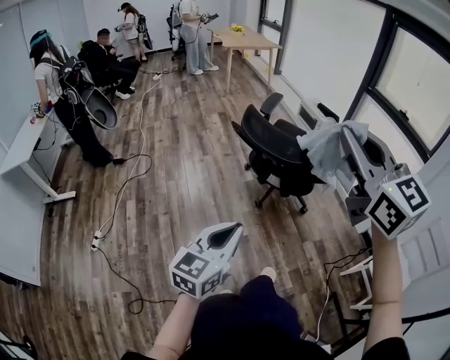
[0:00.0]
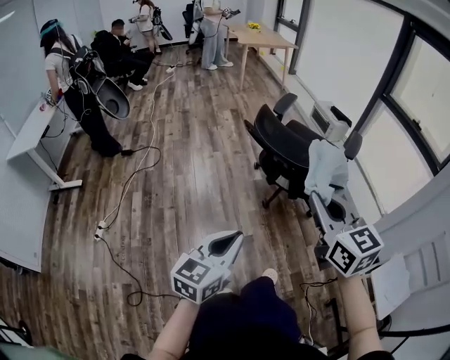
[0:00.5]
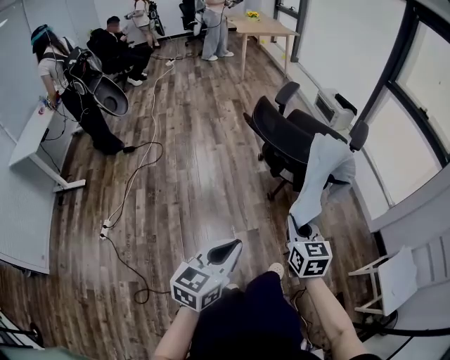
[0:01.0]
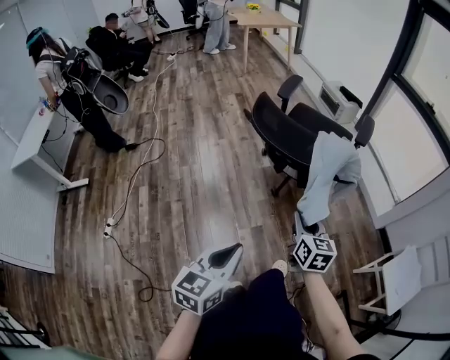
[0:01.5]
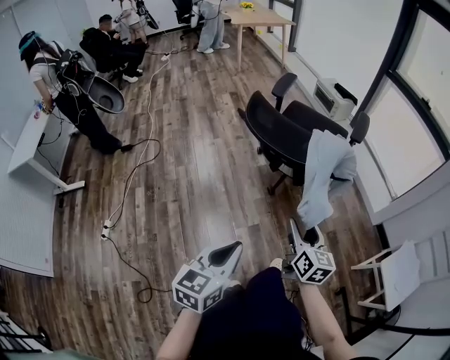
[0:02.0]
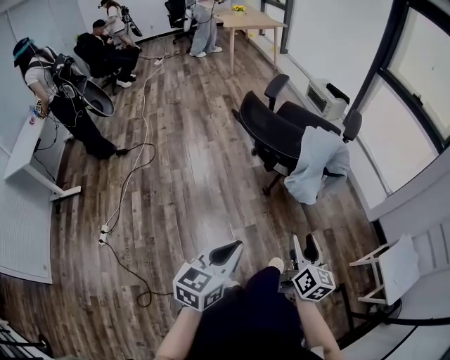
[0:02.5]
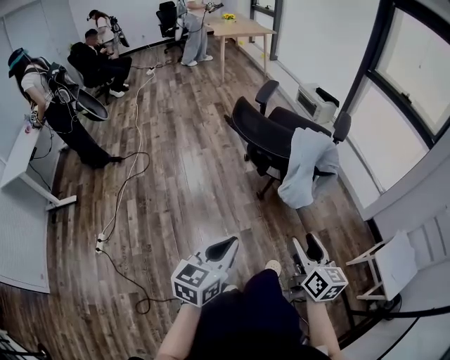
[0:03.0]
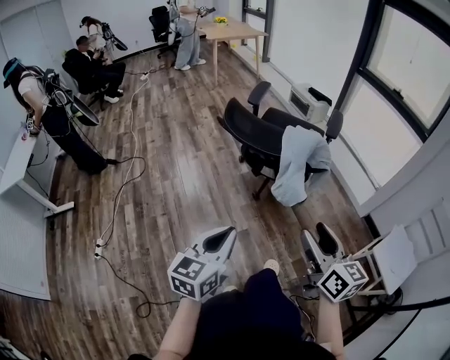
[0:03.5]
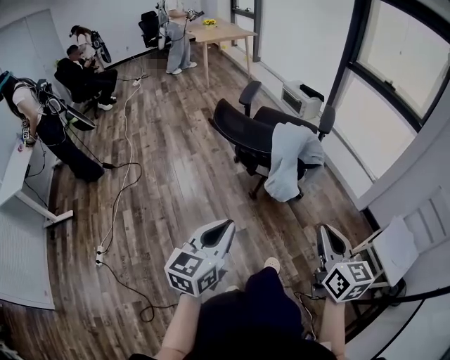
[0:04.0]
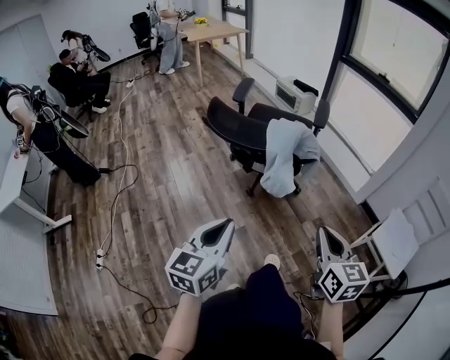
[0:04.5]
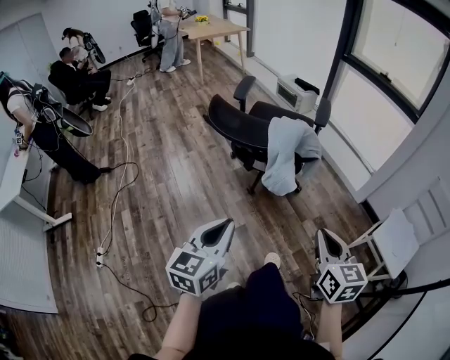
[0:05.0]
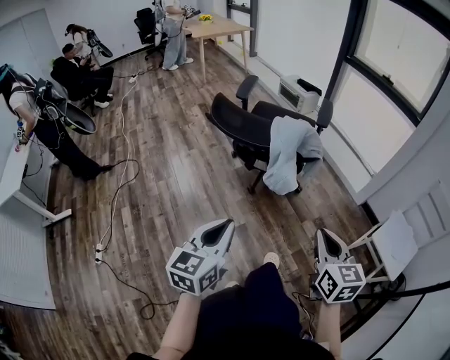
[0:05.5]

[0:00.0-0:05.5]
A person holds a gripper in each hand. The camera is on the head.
0:00.0 to 0:02.0: The left gripper goes about 10 cm downward. The right gripper shifts approximately 40 cm downward, rotates approximately 50 degrees, and opens its fingers.
0:02.0 to 0:03.5: The right gripper travels upward, backward and to the right by about 15 cm.
0:03.5 to 0:05.5: The right gripper travels to the right by approximately 5 cm, turns by approximately 20 degrees, and closes up.

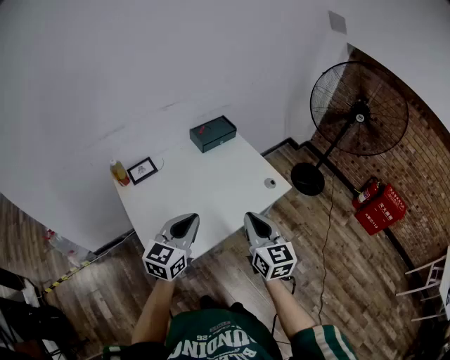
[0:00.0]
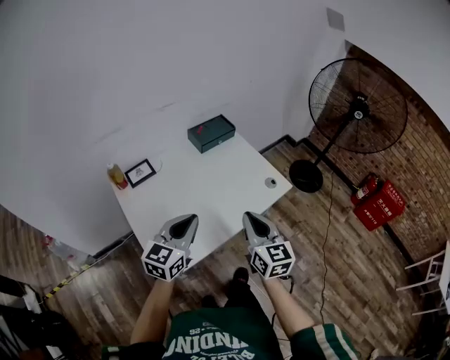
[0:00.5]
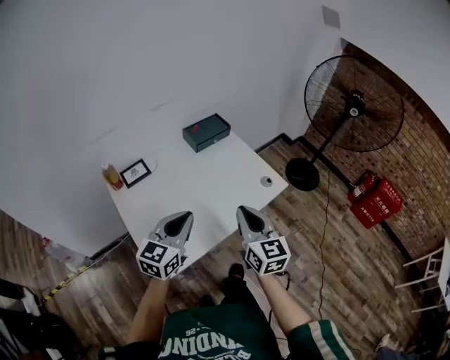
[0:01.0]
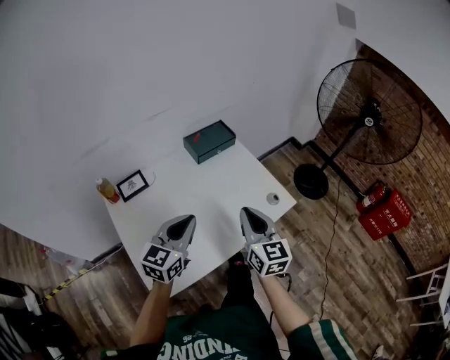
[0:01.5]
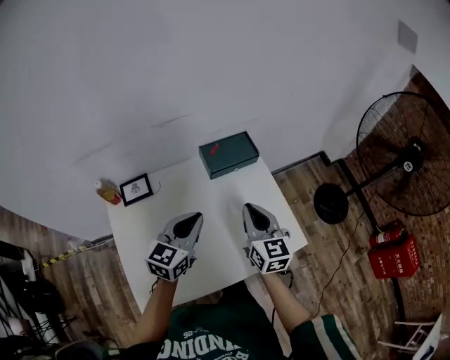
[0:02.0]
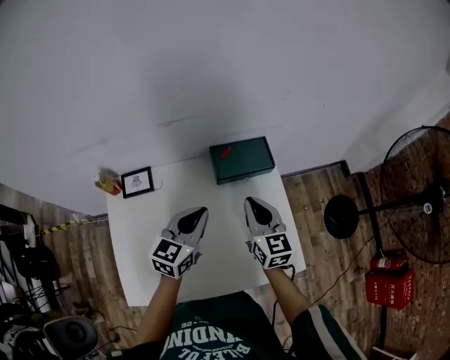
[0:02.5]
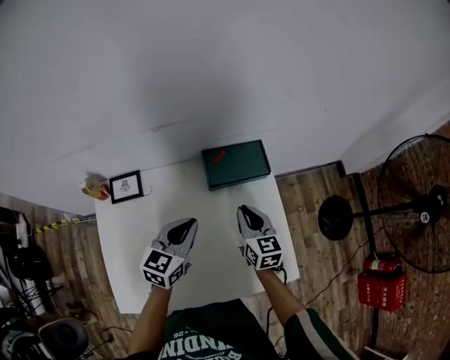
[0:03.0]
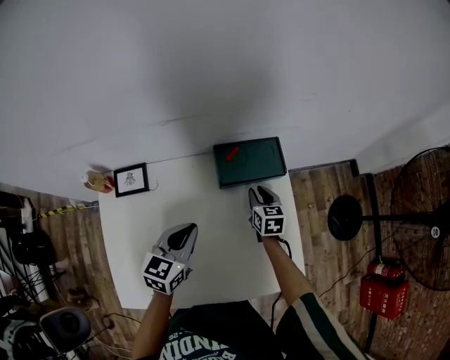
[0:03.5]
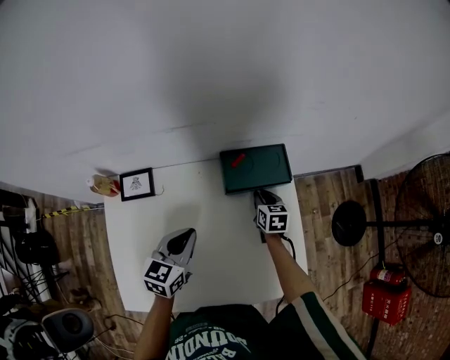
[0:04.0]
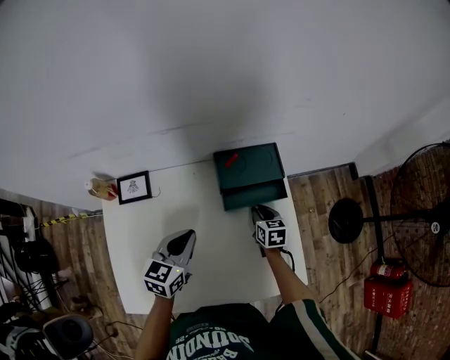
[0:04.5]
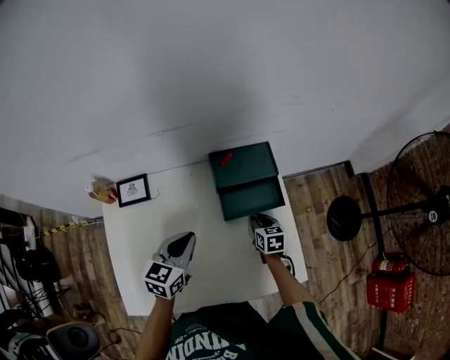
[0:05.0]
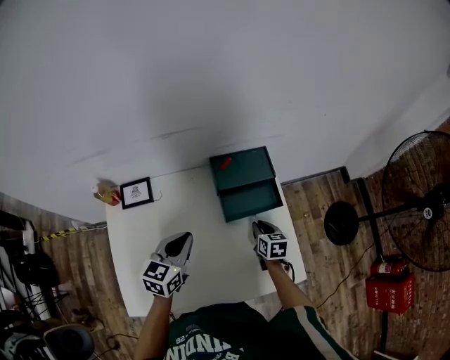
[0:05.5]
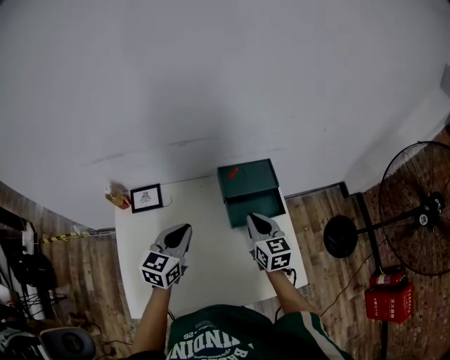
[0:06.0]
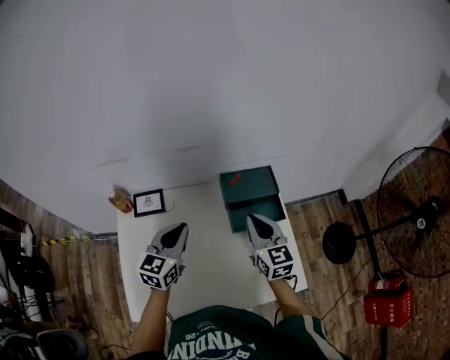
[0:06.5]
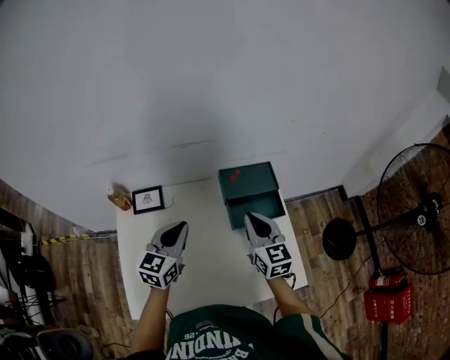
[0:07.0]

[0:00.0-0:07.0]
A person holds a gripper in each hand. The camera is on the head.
0:00.0 to 0:02.0: Both grippers travel together forward, some 30 cm.
0:02.0 to 0:03.5: The left gripper goes approximately 15 cm downward and forward, and swivels roughly 20 degrees; the right gripper goes about 35 cm downward and forward, and turns by about 30 degrees.
0:03.5 to 0:05.0: The right gripper moves backward, approximately 10 cm.
0:05.0 to 0:07.0: The left gripper goes approximately 10 cm upward and to the left, while the right gripper goes some 25 cm upward, and points its fingers some 30 degrees further upward.

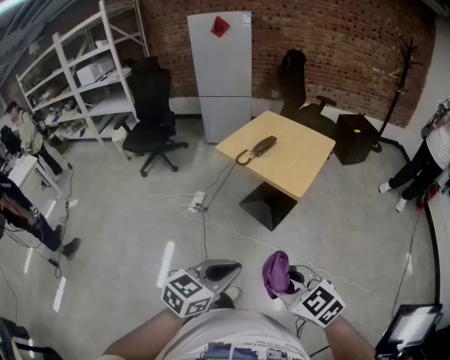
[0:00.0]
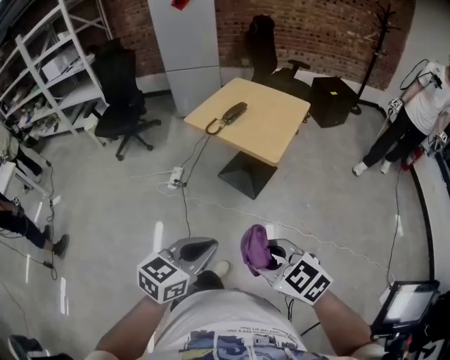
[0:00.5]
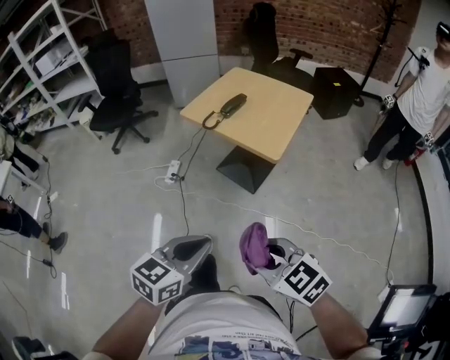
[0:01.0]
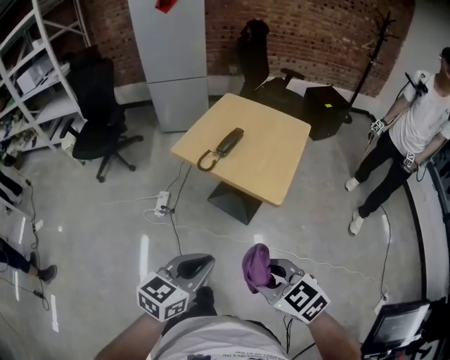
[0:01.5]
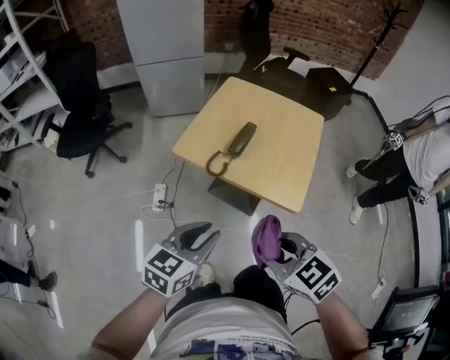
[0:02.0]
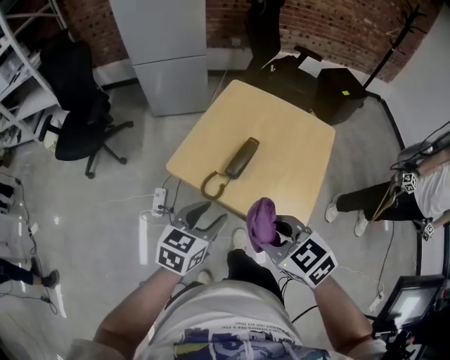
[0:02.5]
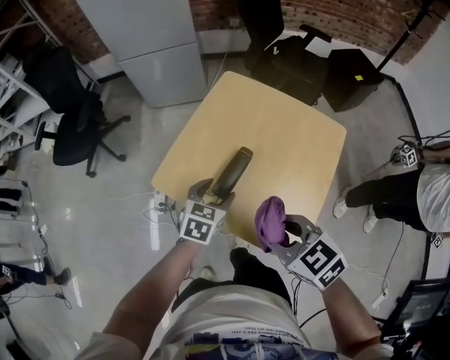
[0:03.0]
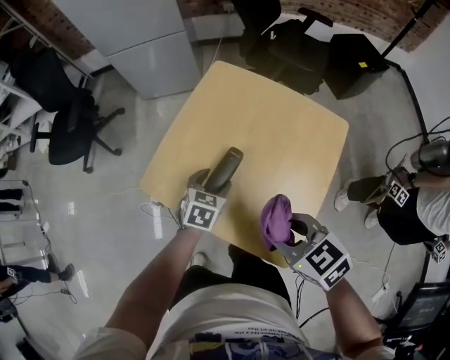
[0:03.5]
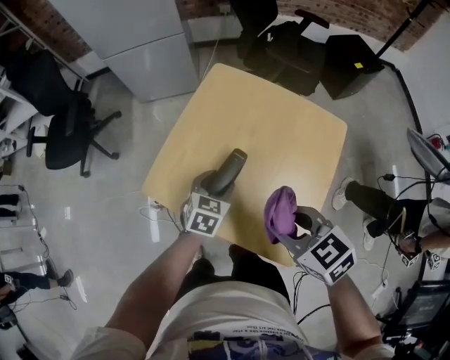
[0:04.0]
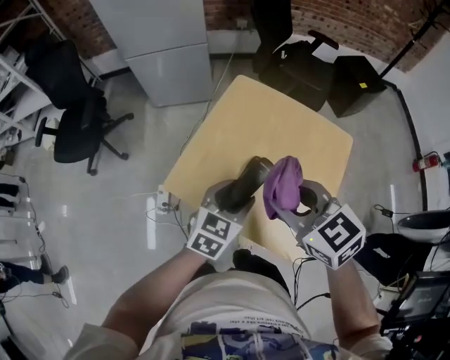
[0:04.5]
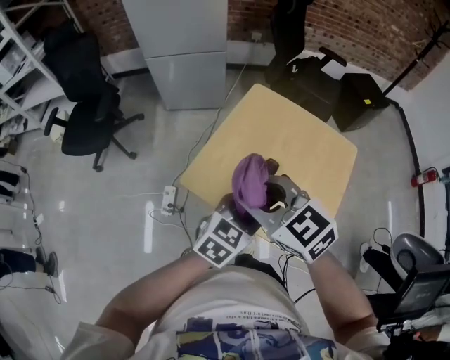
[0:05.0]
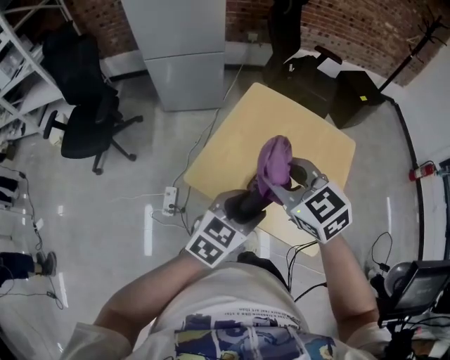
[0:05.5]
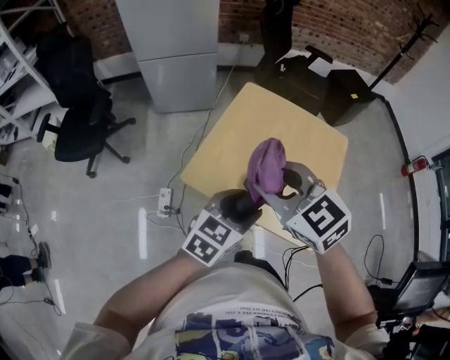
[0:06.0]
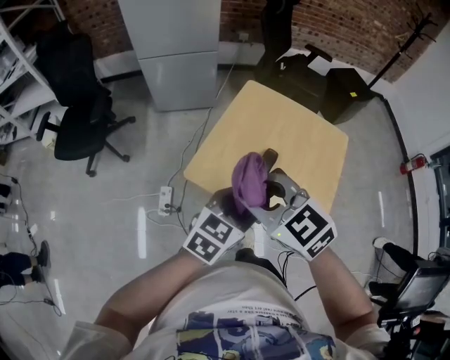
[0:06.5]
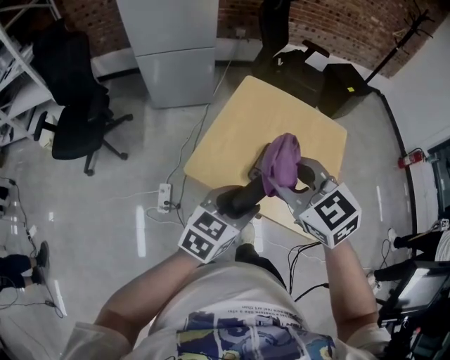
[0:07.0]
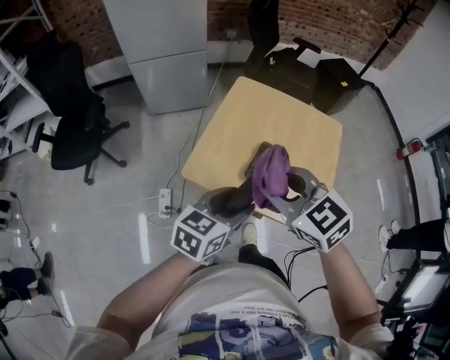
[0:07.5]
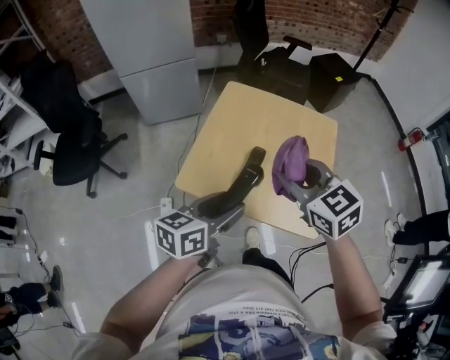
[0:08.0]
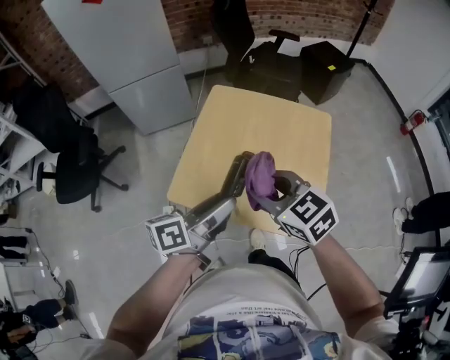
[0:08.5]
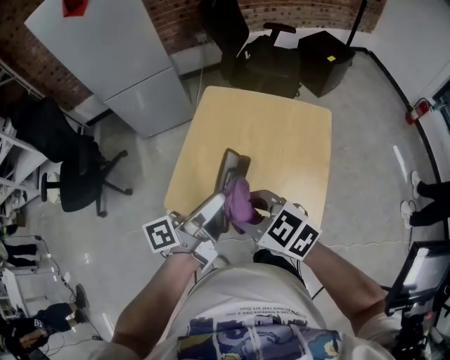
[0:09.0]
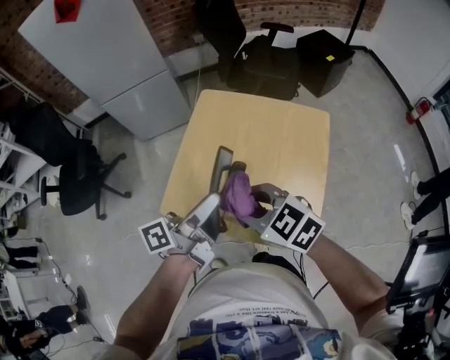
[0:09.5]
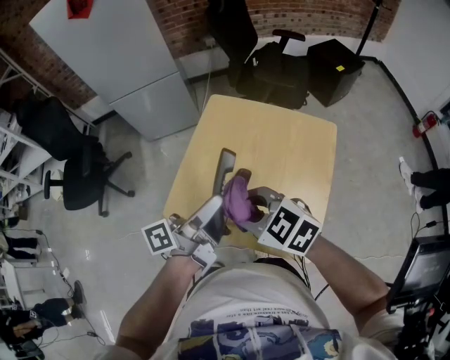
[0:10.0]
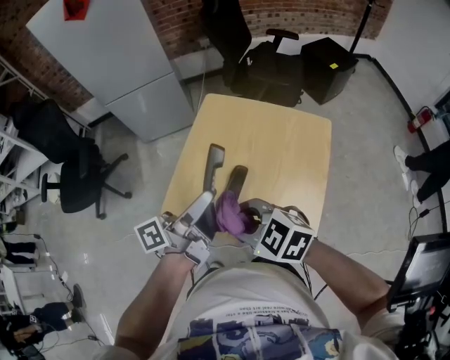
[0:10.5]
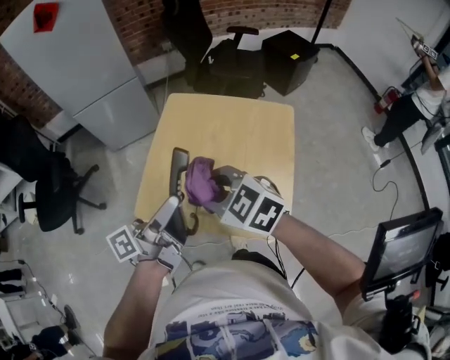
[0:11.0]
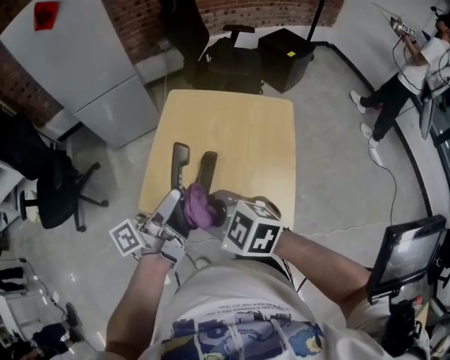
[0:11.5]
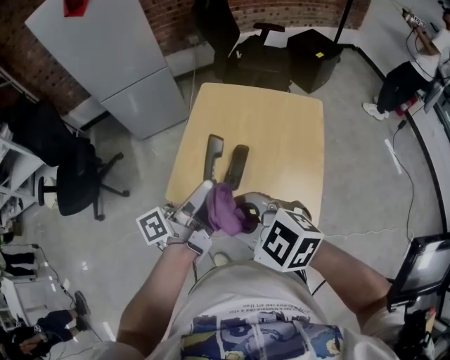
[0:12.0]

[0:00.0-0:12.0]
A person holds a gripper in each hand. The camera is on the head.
0:00.0 to 0:02.0: The two grippers go approximately 30 cm forward.
0:02.0 to 0:04.0: The right gripper shifts some 30 cm forward and to the right. Meanwhile the left gripper shifts some 35 cm forward, downward and to the right, swivels some 30 degrees, and opens.
0:04.0 to 0:06.0: The left gripper shifts some 20 cm upward and backward, and rotates roughly 20 degrees. The right gripper moves to the left and upward, about 20 cm, and turns by about 20 degrees.
0:06.0 to 0:08.0: The left gripper rotates about 30 degrees, while the right gripper is displaced to the right by approximately 10 cm.
0:08.0 to 0:10.0: The right gripper goes approximately 5 cm downward, and changes its angle by about 30 degrees; the left gripper moves forward and upward, about 10 cm, and turns by approximately 50 degrees.
0:10.0 to 0:12.0: The left gripper moves approximately 5 cm. Meanwhile the right gripper heads backward and to the left, covering about 10 cm.

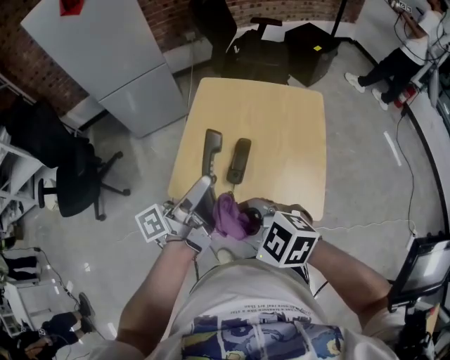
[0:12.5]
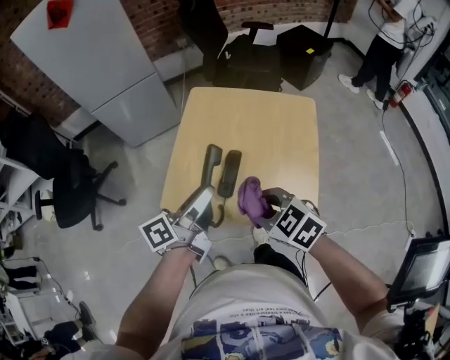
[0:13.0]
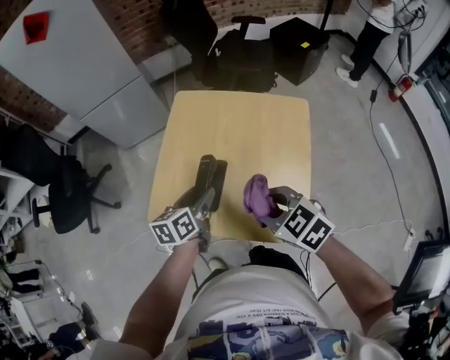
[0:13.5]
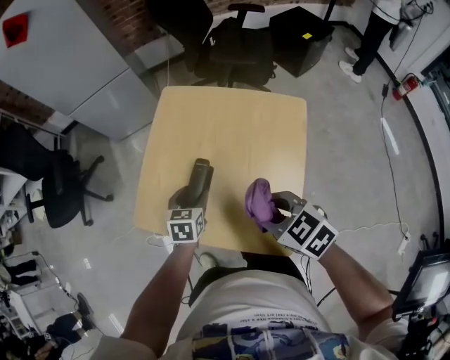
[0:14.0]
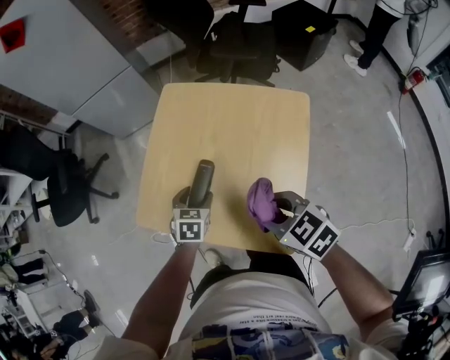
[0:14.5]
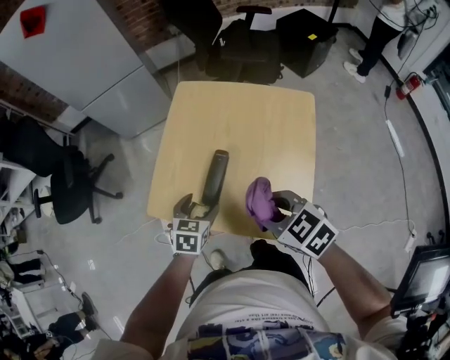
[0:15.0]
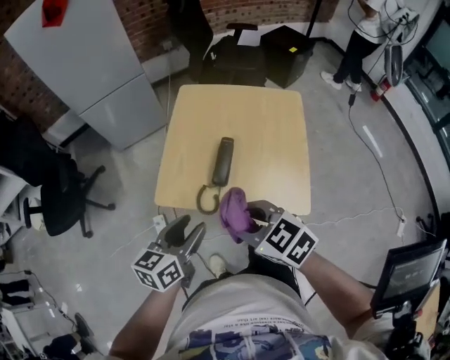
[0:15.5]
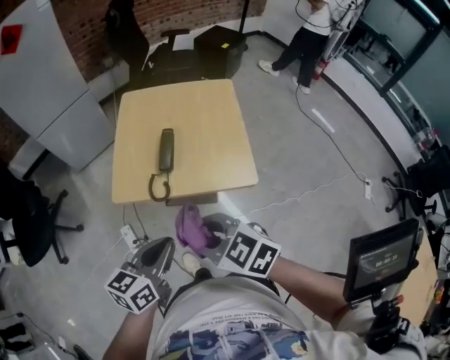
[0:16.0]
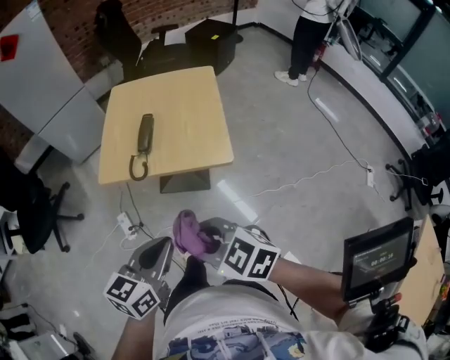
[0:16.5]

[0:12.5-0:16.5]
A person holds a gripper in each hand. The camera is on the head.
0:12.5 to 0:14.5: The left gripper travels downward by some 25 cm, and points its fingers about 70 degrees further downward. The right gripper goes roughly 20 cm to the right, and changes its angle by roughly 30 degrees.
0:14.5 to 0:16.5: The left gripper ends up roughly 40 cm from where it was, points its fingers some 30 degrees further upward, and closes its fingers. The right gripper changes place by approximately 35 cm.
